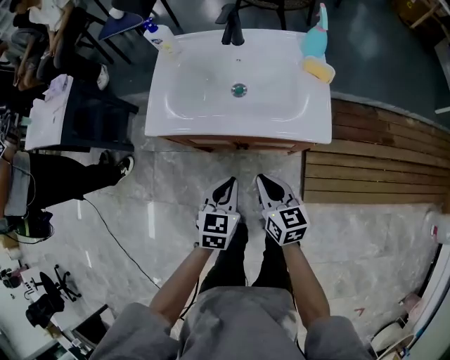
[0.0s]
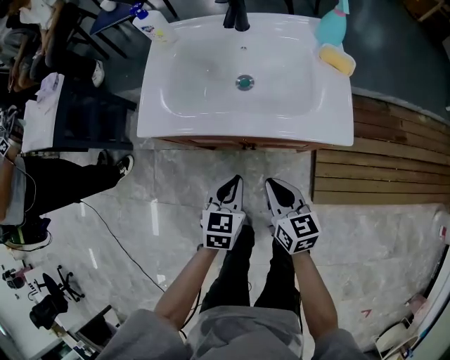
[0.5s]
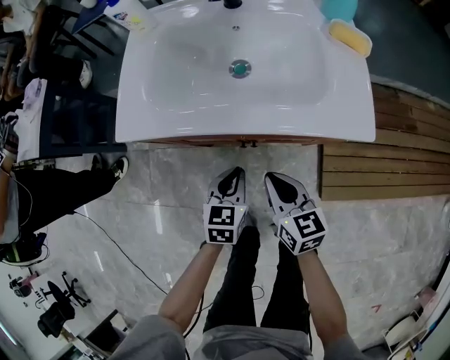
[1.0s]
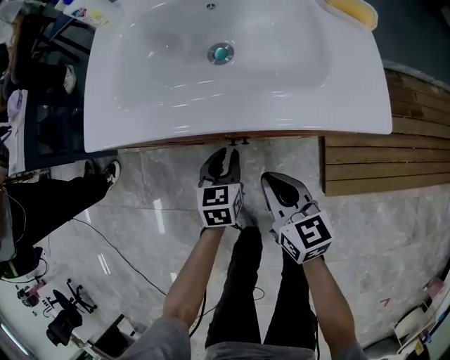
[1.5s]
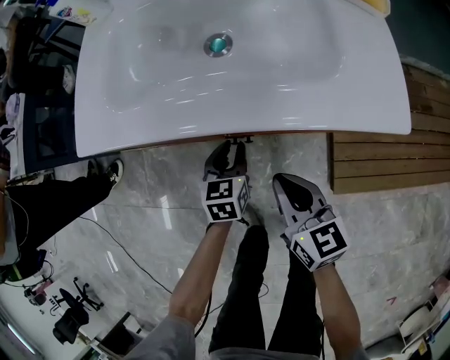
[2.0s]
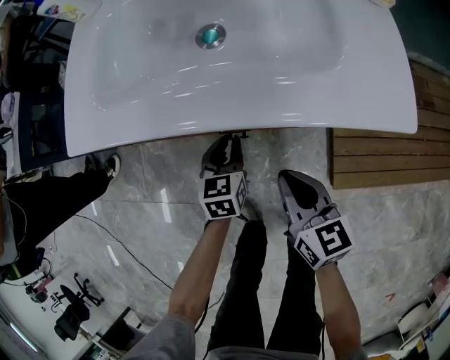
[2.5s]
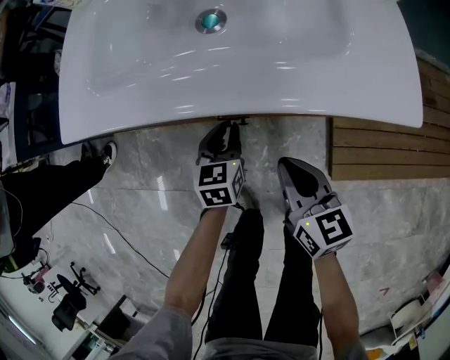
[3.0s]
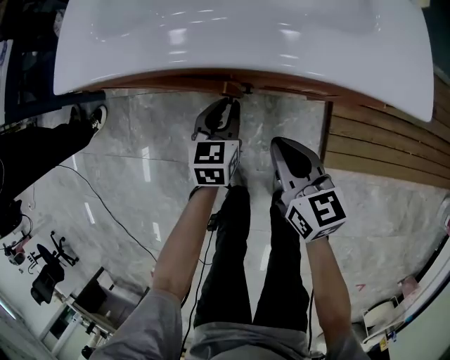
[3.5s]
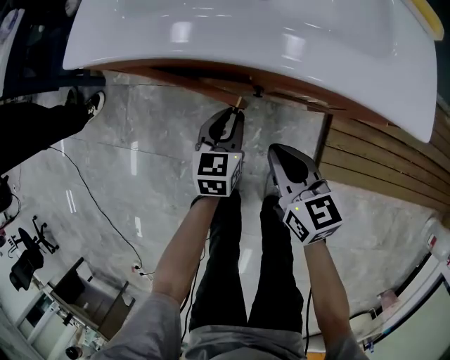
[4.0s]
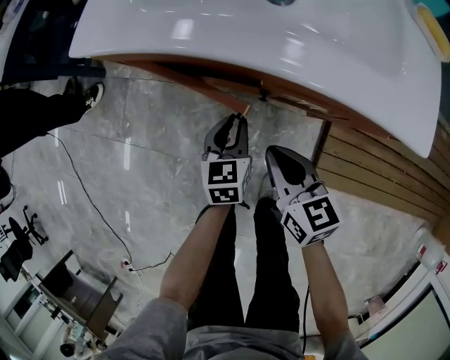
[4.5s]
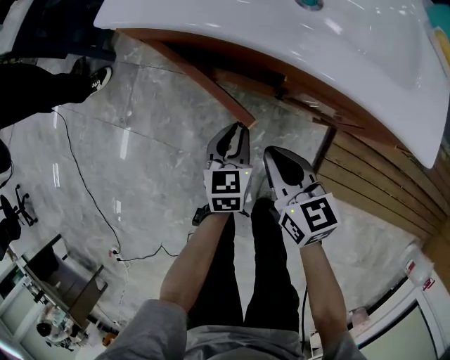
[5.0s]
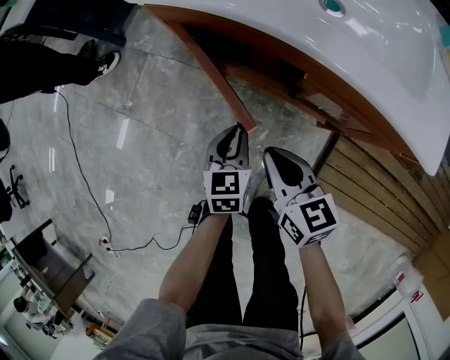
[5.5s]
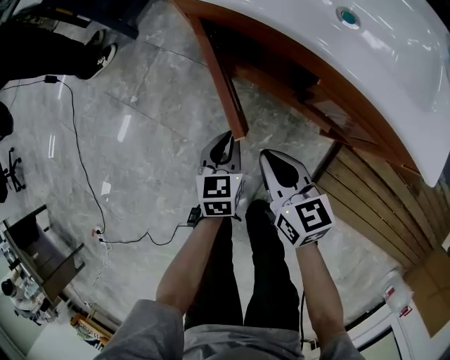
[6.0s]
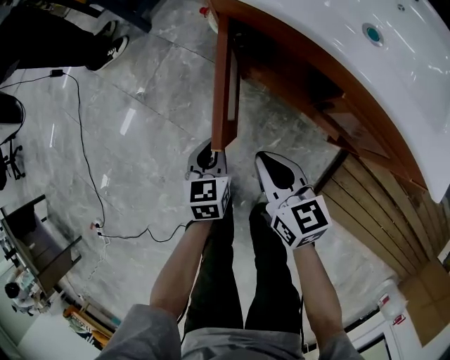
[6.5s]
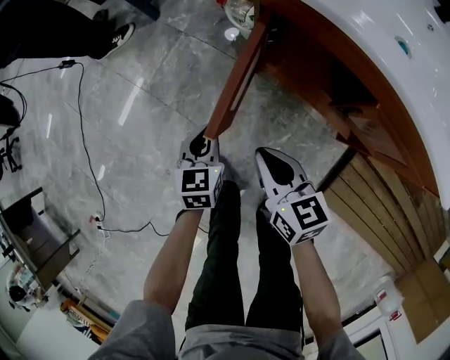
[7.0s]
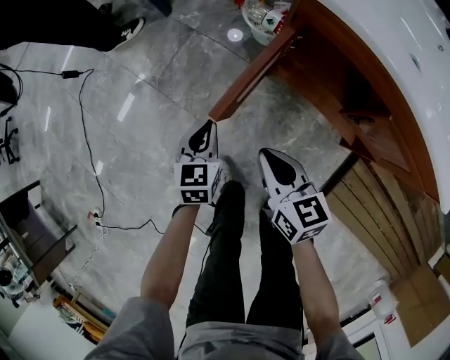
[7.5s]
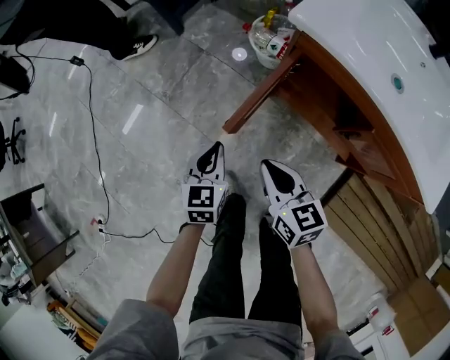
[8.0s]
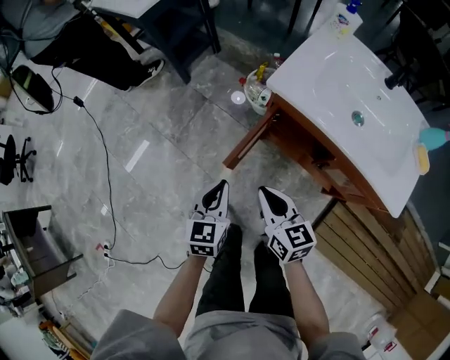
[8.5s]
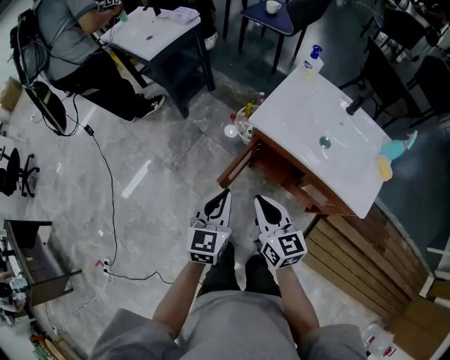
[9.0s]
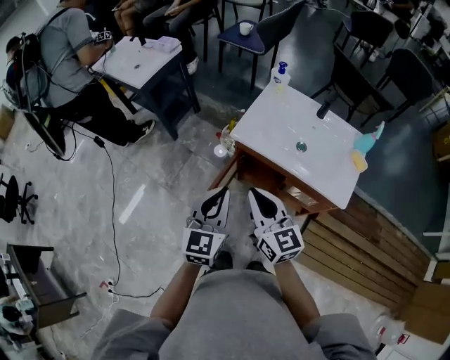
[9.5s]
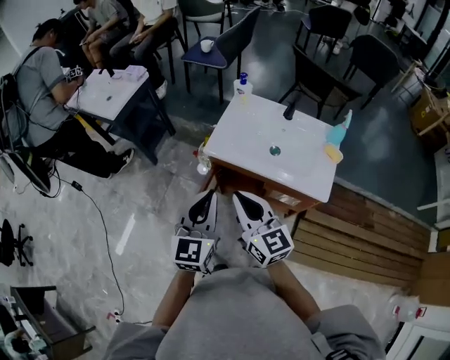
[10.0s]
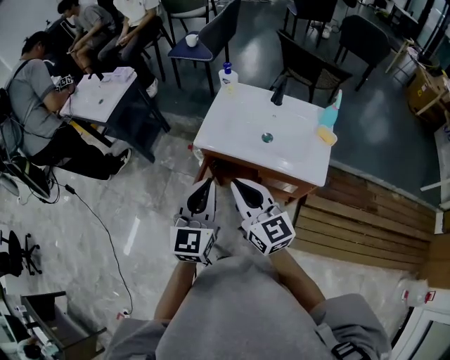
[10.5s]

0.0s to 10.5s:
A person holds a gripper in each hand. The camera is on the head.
0.0s to 2.0s: The right gripper goes some 15 cm downward, while the left gripper goes about 30 cm downward and forward, and opens up.
2.0s to 4.0s: The left gripper shifts by approximately 5 cm.
4.0s to 6.5s: The right gripper shifts by roughly 15 cm, and rotates some 20 degrees, while the left gripper moves approximately 20 cm, and changes its angle by some 30 degrees.
6.5s to 8.5s: Both grippers travel together upward and to the left, approximately 20 cm.
8.5s to 10.5s: The right gripper shifts approximately 30 cm upward, and turns by approximately 30 degrees. The left gripper is displaced upward and to the right by some 40 cm, and changes its angle by some 30 degrees.

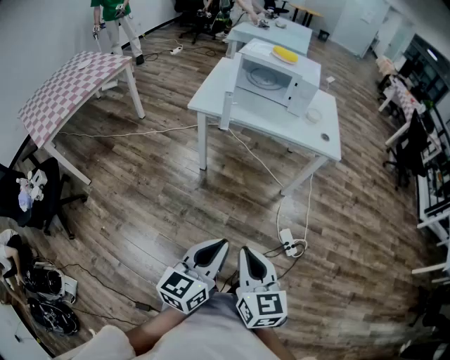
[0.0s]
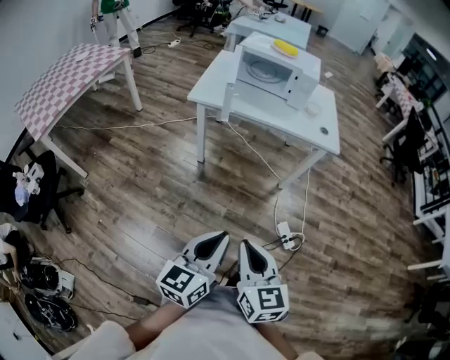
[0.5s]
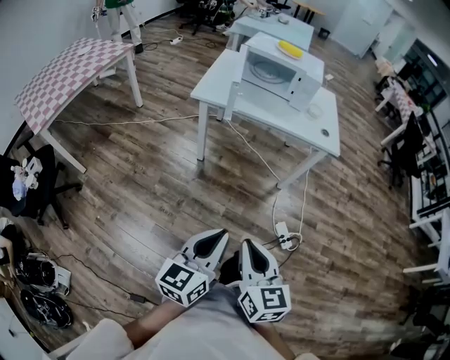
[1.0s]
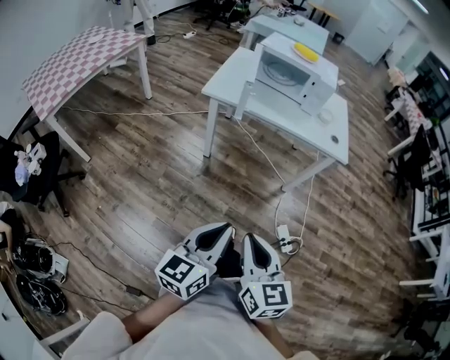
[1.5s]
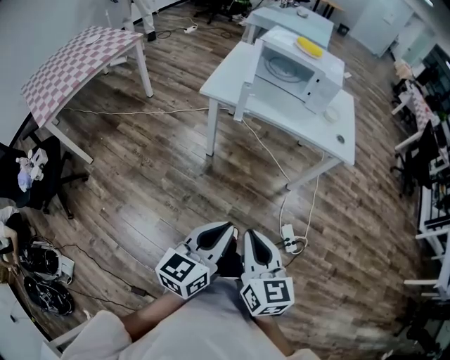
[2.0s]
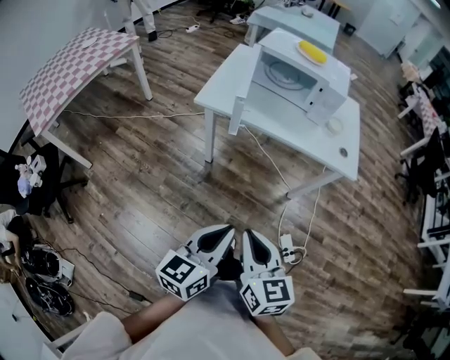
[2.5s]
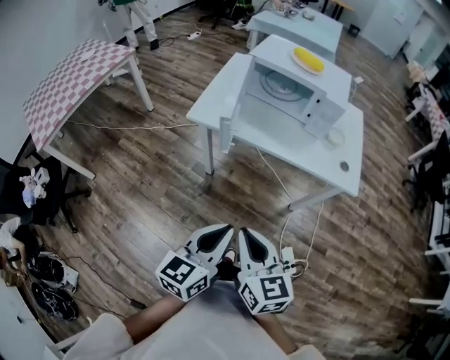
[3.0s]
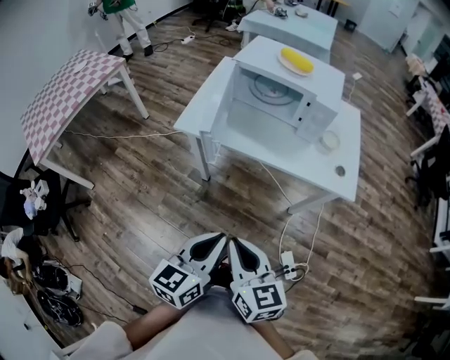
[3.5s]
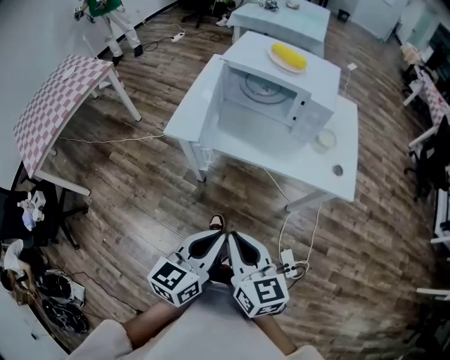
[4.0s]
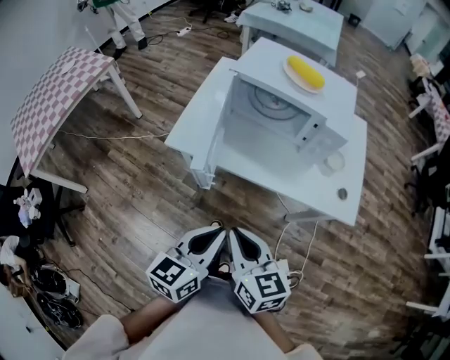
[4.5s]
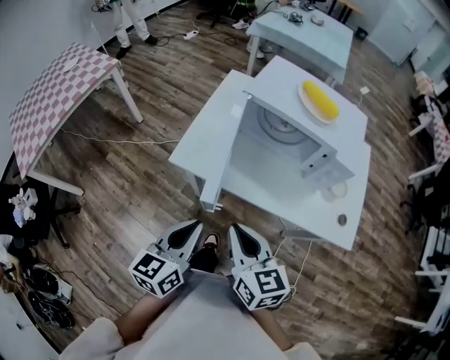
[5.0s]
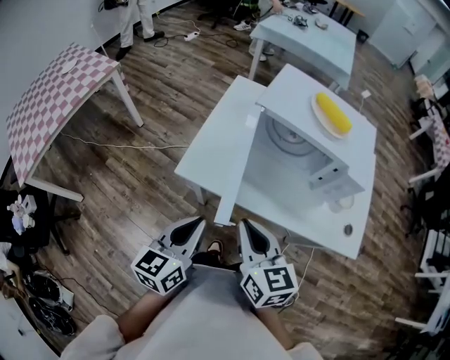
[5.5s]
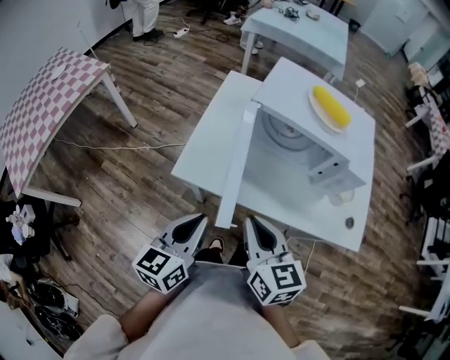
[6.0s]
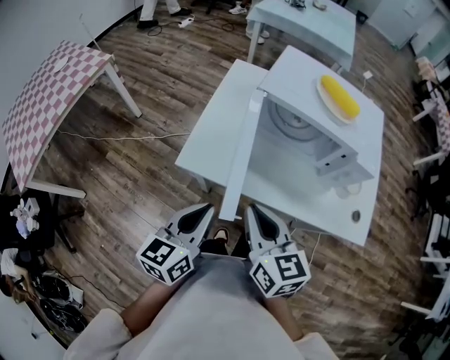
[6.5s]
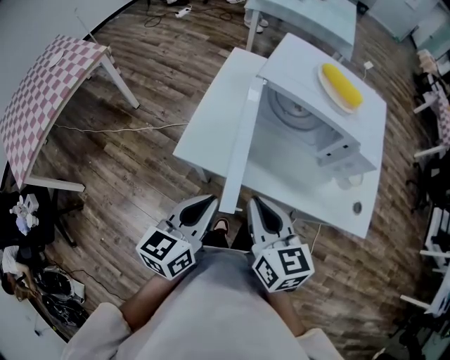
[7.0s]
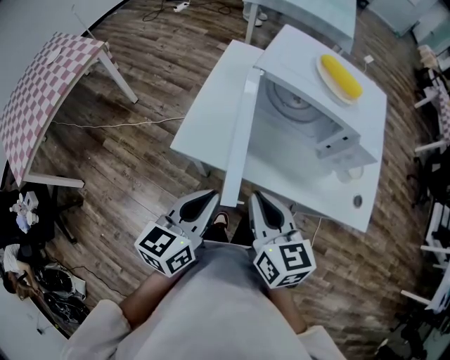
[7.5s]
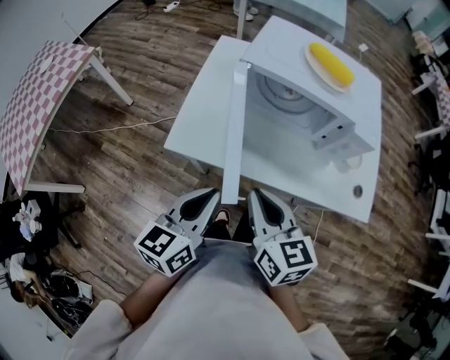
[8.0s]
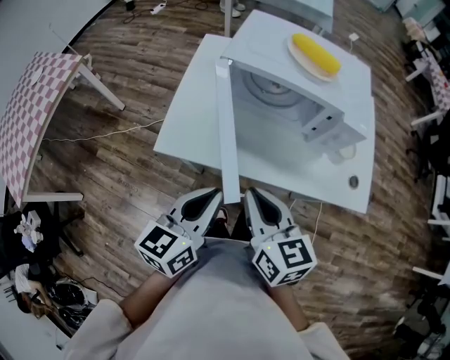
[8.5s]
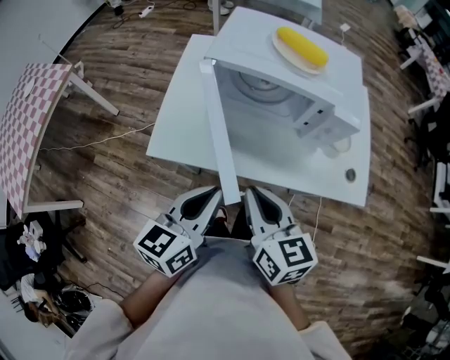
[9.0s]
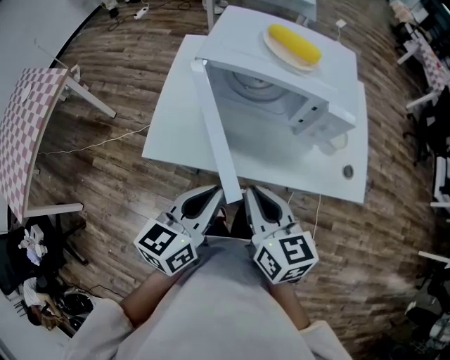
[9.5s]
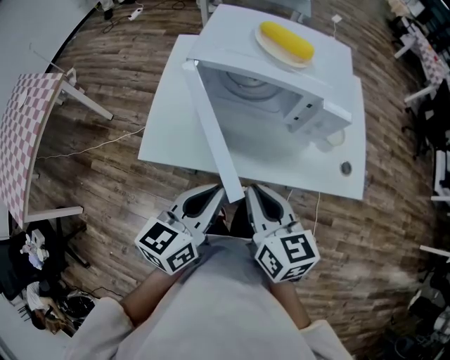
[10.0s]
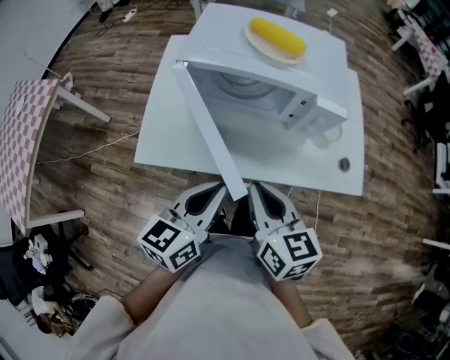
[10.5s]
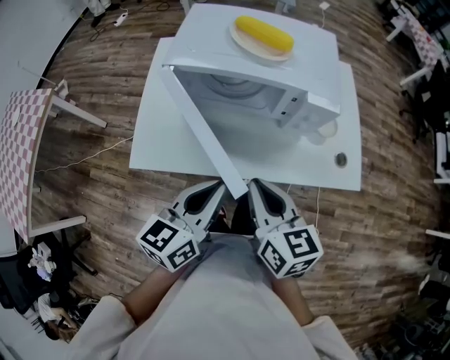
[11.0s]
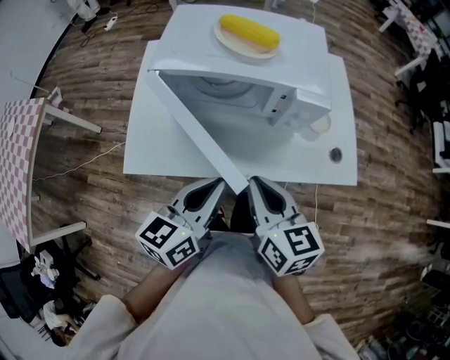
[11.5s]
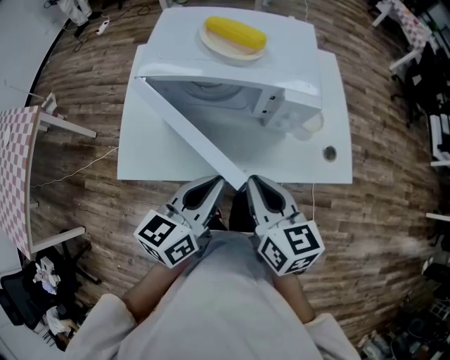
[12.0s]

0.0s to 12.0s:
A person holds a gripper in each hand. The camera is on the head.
0.0s to 2.0s: Both grippers travel together forward, approximately 5 cm.
2.0s to 4.0s: Both grippers travel together forward, about 25 cm.
4.0s to 6.0s: The right gripper travels forward by some 25 cm, while the left gripper shifts some 30 cm forward and to the left.
6.0s to 8.0s: The grippers make only small movements.
8.0s to 10.0s: Both grippers travel together to the right, about 10 cm.
10.0s to 12.0s: The left gripper shifts about 10 cm to the right and forward. Meanwhile the right gripper travels to the right by roughly 5 cm.

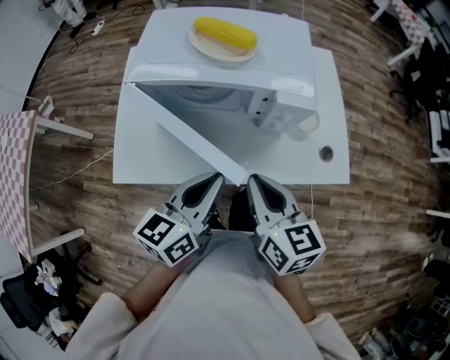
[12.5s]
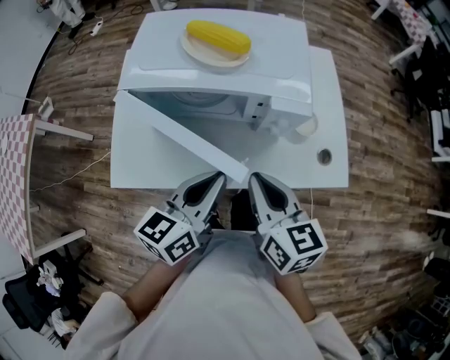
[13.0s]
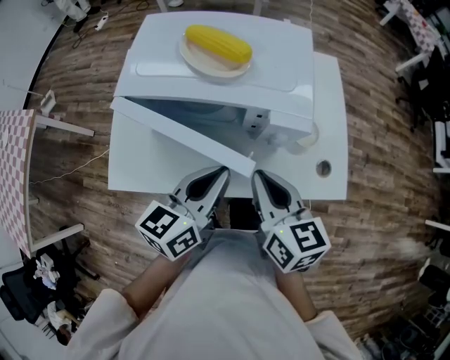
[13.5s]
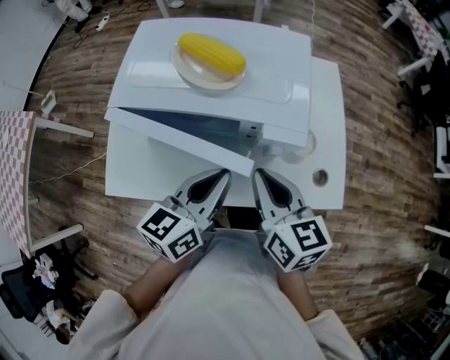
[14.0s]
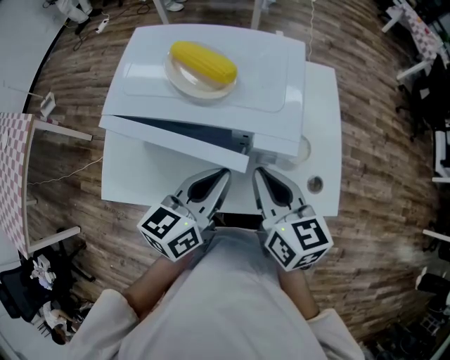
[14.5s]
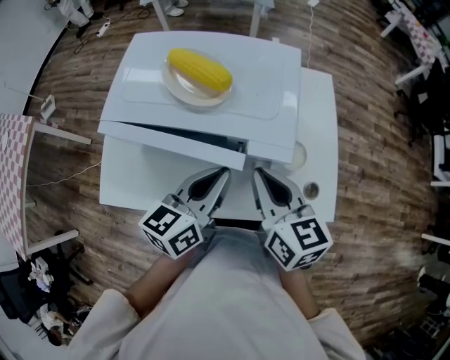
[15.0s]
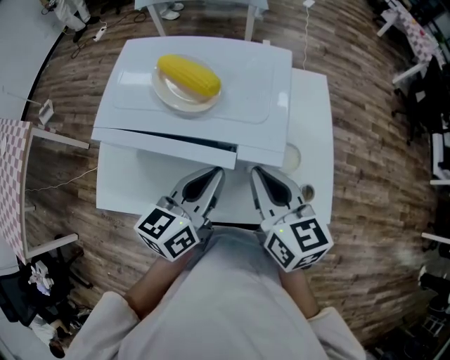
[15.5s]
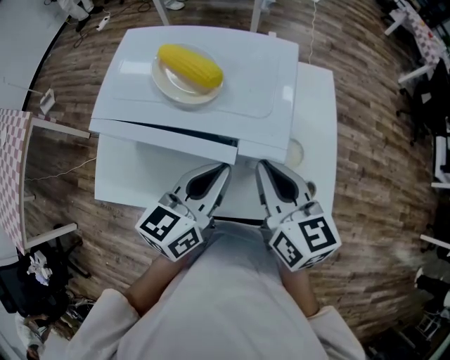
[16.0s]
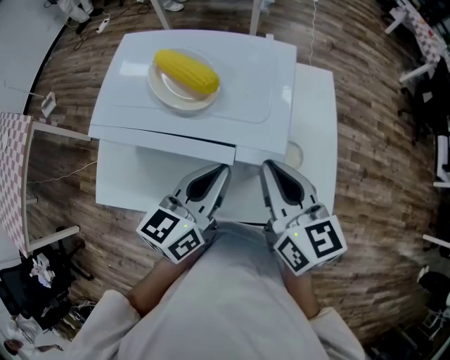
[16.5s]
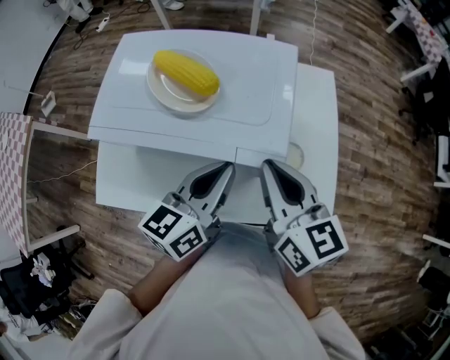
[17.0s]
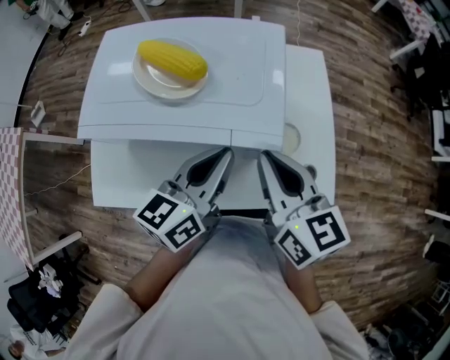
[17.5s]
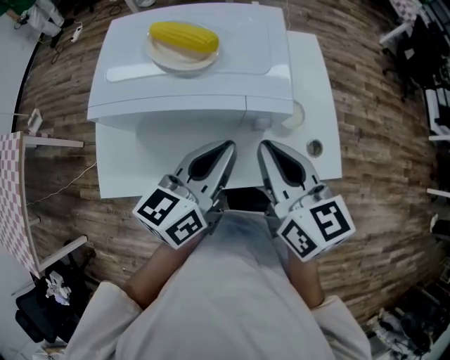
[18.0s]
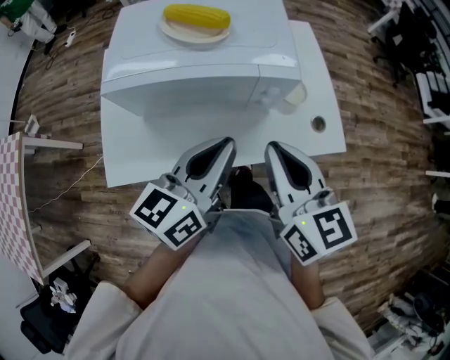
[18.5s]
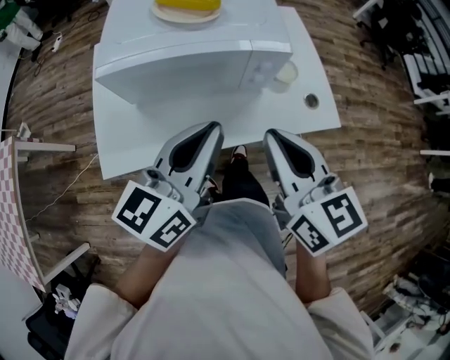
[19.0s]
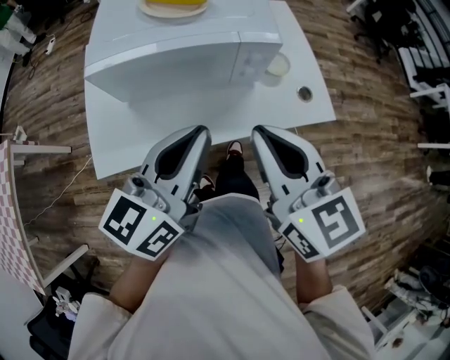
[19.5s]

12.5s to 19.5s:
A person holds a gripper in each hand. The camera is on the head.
12.5s to 14.5s: The grippers both shift forward and to the right by some 15 cm.
14.5s to 16.0s: There are only small adjustments of the grippers.
16.0s to 17.5s: The grippers make only small movements.
17.5s to 19.5s: The right gripper heads backward, covering roughly 20 cm; the left gripper shifts about 20 cm backward and upward.
